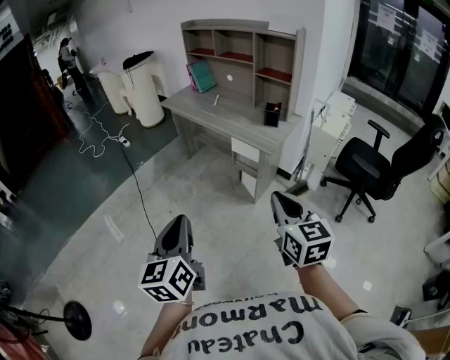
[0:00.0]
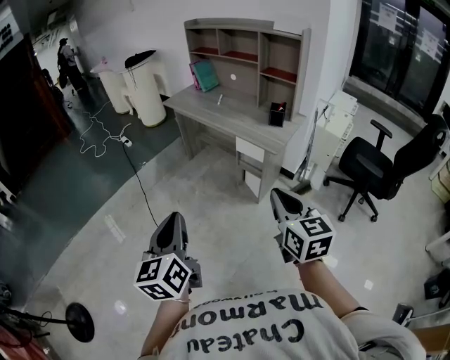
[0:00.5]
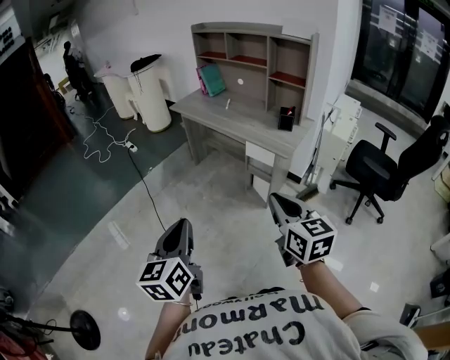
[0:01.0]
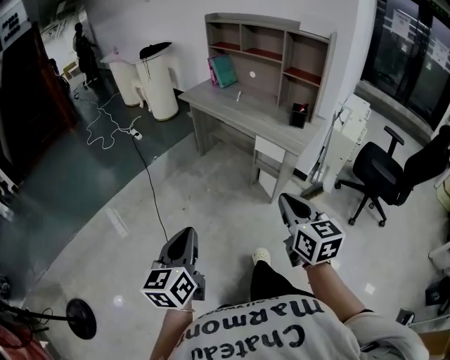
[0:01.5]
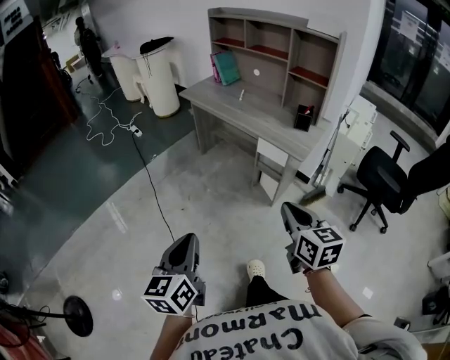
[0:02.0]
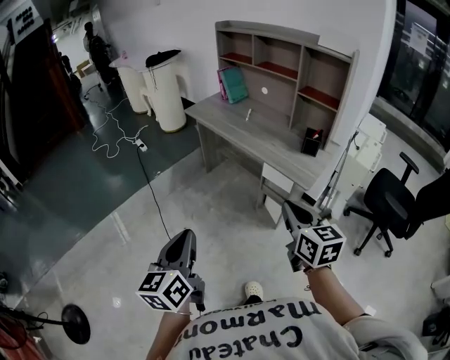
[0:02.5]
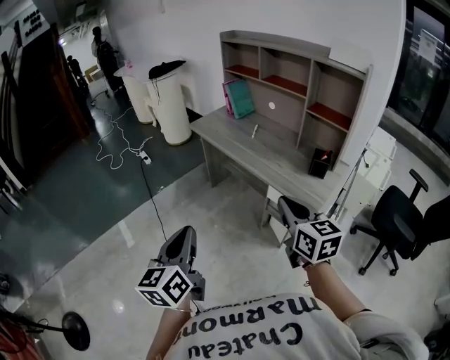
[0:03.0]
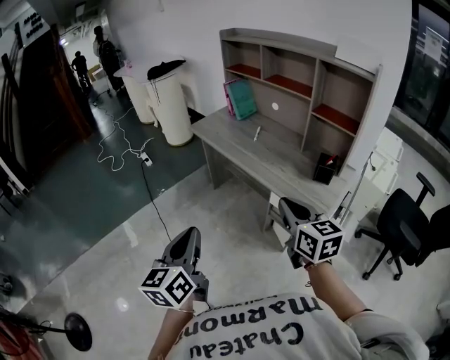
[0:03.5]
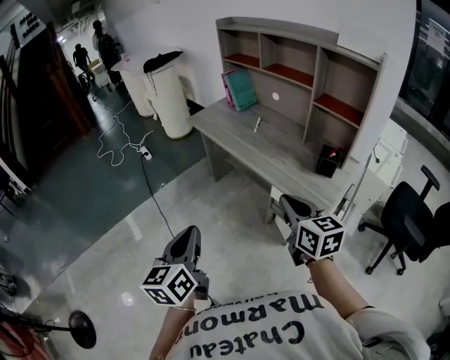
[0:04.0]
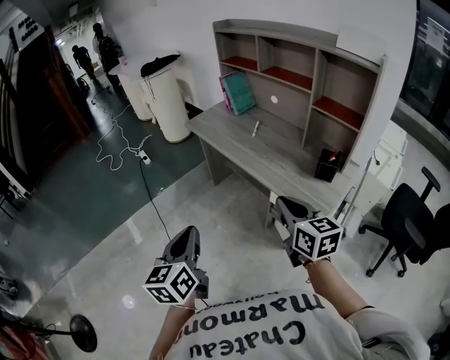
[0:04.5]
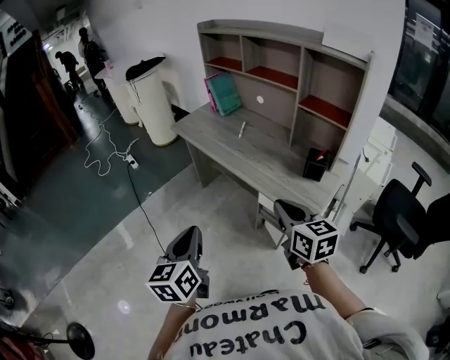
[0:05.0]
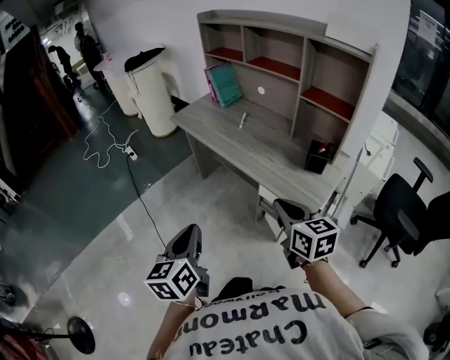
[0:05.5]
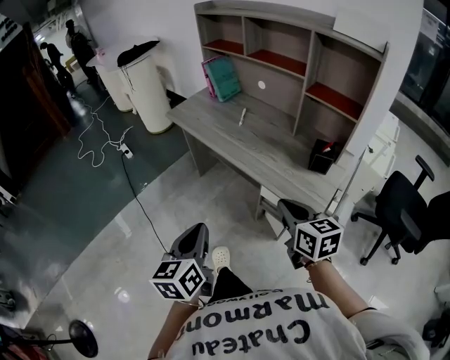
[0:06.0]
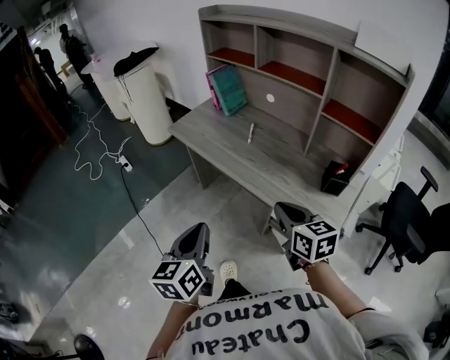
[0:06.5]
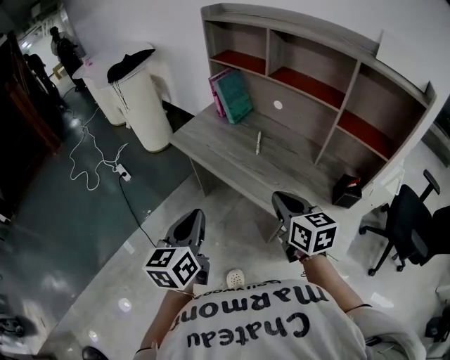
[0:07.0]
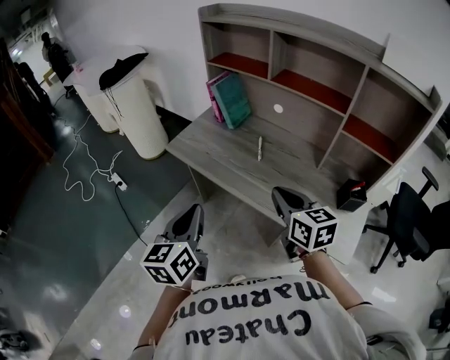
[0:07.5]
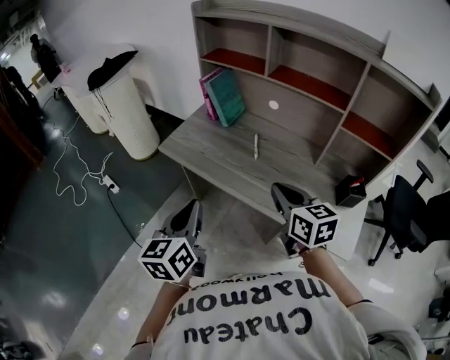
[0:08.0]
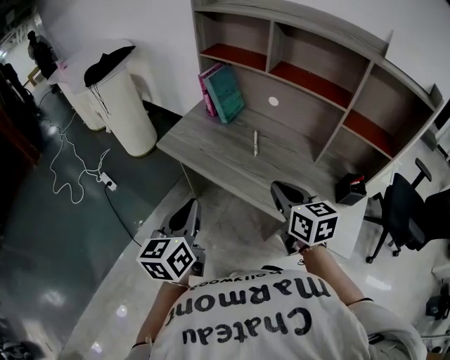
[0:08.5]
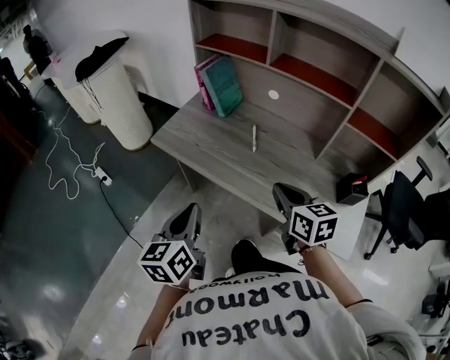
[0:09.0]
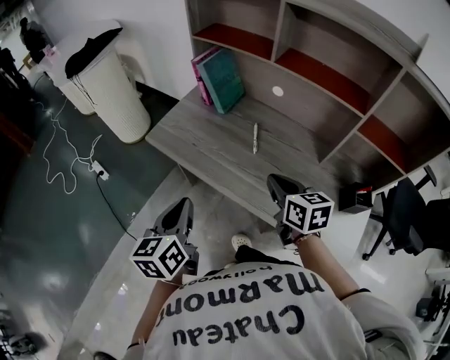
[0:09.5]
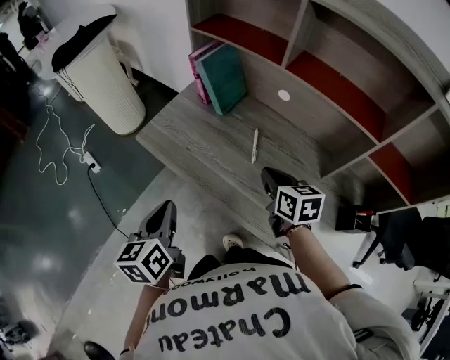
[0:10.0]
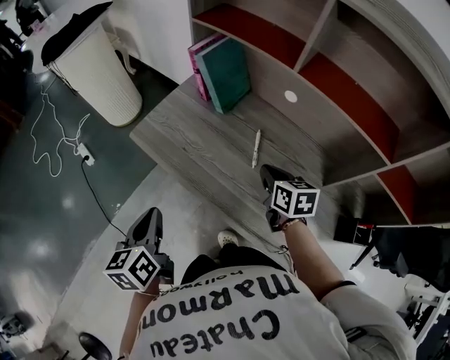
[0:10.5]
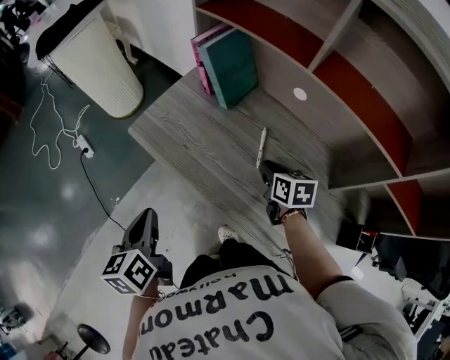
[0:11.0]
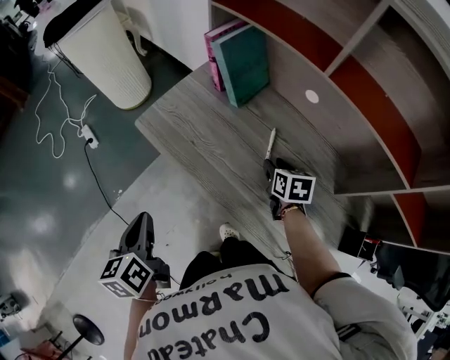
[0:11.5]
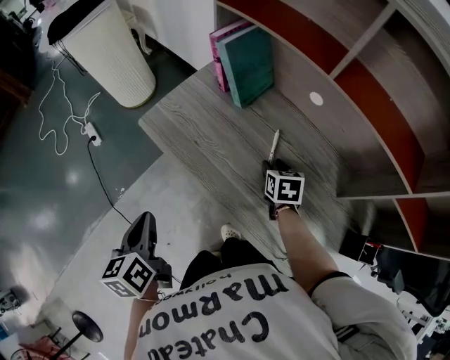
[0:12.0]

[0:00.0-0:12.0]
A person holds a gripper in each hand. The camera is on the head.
0:00.0 to 0:02.0: The left gripper goes approximately 10 cm to the left and downward. Meanwhile the right gripper heads to the left, forward and downward, covering about 15 cm.
0:02.0 to 0:04.0: The two grippers go about 30 cm forward.
0:04.0 to 0:06.0: The left gripper shifts some 10 cm forward, to the right and downward. Meanwhile the right gripper shifts some 5 cm downward.
0:06.0 to 0:08.0: The right gripper goes some 30 cm forward and to the left, while the left gripper is displaced forward by approximately 30 cm.
0:08.0 to 0:10.0: Both grippers move forward and downward, roughly 20 cm.
0:10.0 to 0:12.0: The left gripper goes approximately 5 cm to the left. The right gripper is displaced downward and forward by approximately 15 cm, swivels roughly 20 degrees, and opens its fingers.

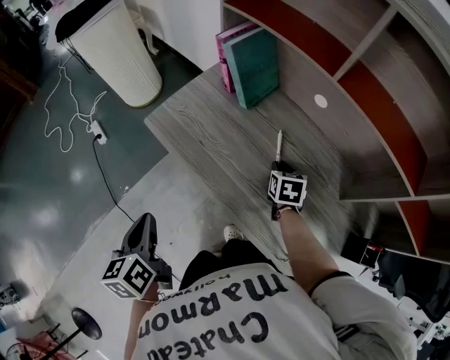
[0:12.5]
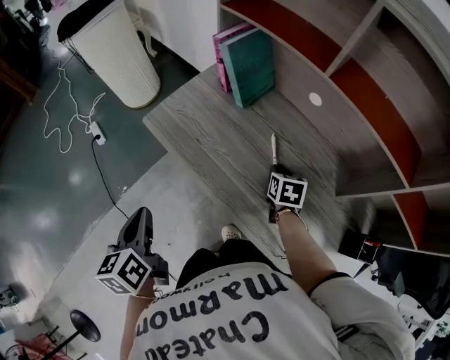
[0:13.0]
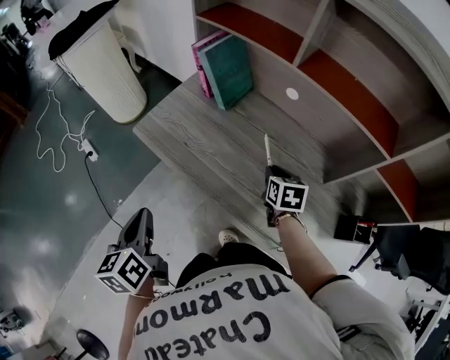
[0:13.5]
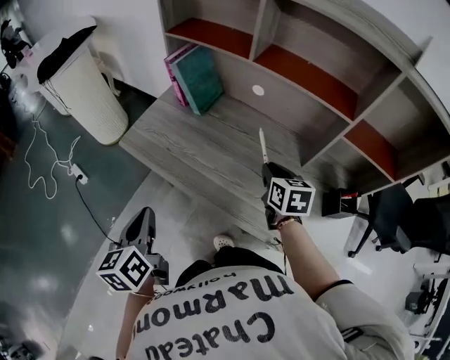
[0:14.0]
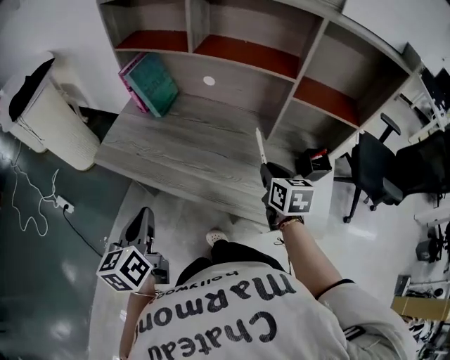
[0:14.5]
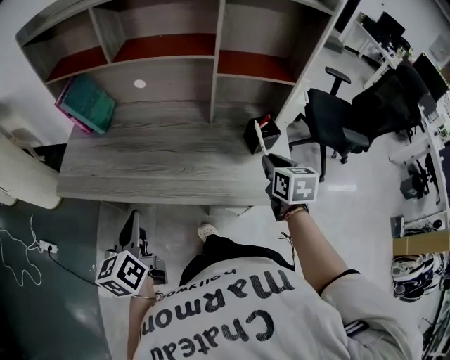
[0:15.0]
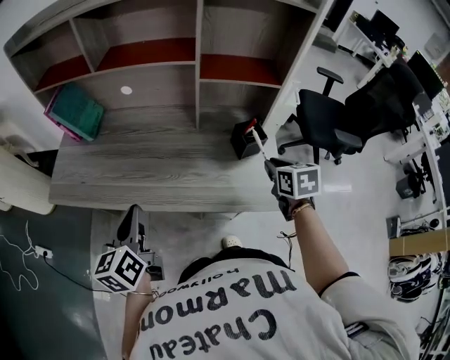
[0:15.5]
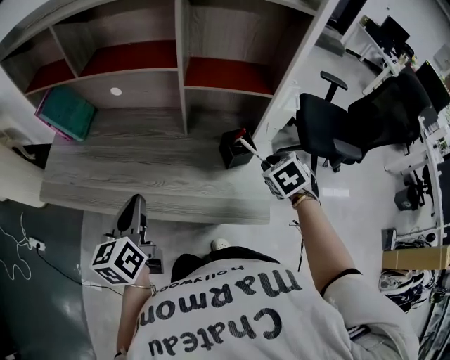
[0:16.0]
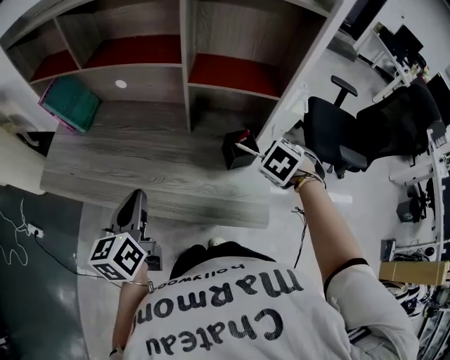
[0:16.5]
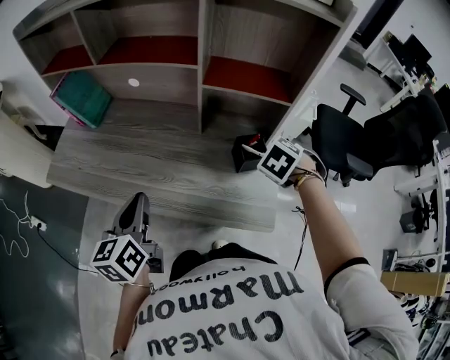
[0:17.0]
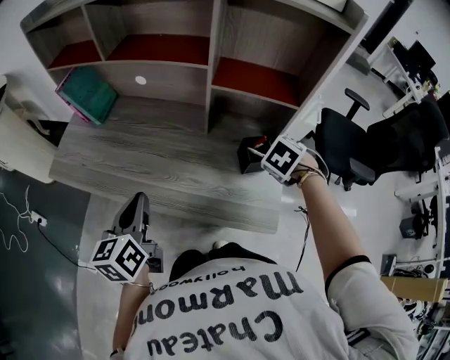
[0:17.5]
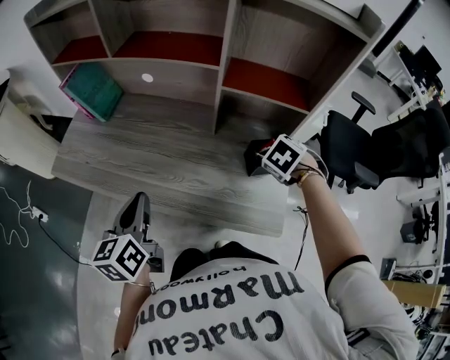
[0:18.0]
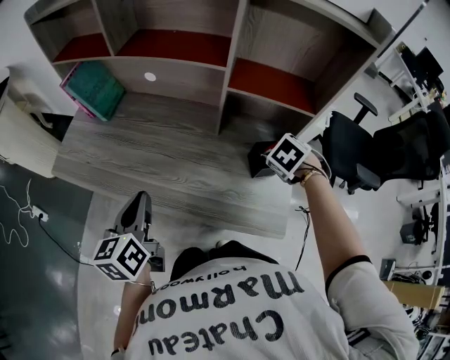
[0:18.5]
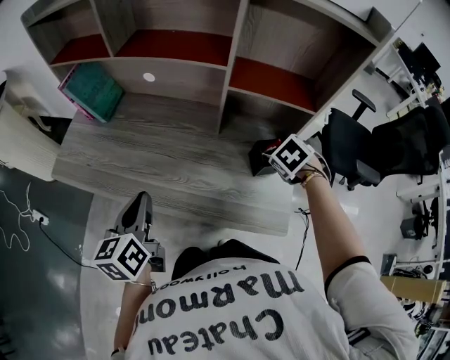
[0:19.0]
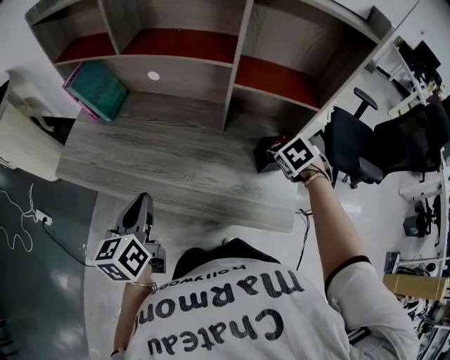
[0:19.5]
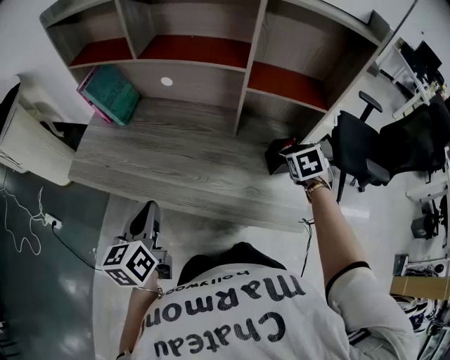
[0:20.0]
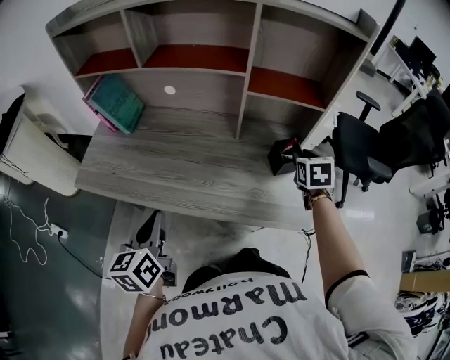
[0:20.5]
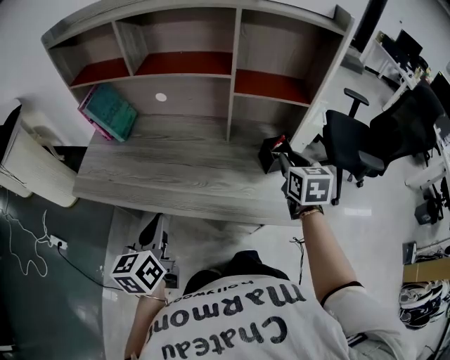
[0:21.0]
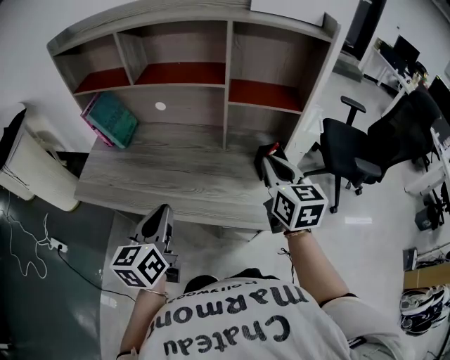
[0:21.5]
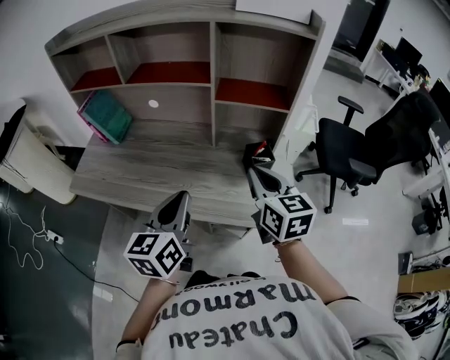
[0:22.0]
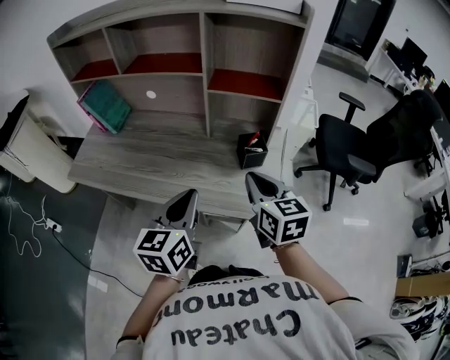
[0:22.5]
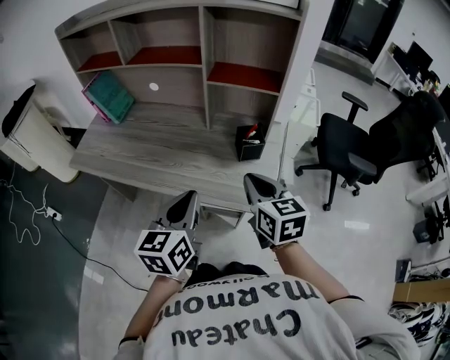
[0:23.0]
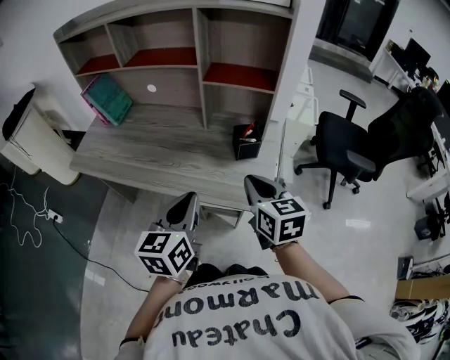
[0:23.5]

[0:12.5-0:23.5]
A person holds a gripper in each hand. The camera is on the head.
0:12.5 to 0:14.5: The left gripper goes approximately 15 cm to the right and upward, and changes its angle by some 30 degrees, while the right gripper heads backward, upward and to the right, covering some 30 cm, and changes its angle by approximately 30 degrees.
0:14.5 to 0:16.0: The right gripper goes roughly 25 cm to the right, and rotates approximately 40 degrees. The left gripper shifts approximately 25 cm to the right and forward.
0:16.0 to 0:18.0: The right gripper moves roughly 5 cm, and rotates some 30 degrees.
0:18.0 to 0:20.0: The left gripper shifts by some 5 cm, while the right gripper swivels roughly 40 degrees.
0:20.0 to 0:21.5: The right gripper travels upward, backward and to the left by about 20 cm, angles its fingers upward, by some 40 degrees, and closes, while the left gripper is displaced to the right by approximately 5 cm.
0:21.5 to 0:23.5: The left gripper shifts some 20 cm to the right and backward; the right gripper heads backward, downward and to the right, covering some 15 cm.

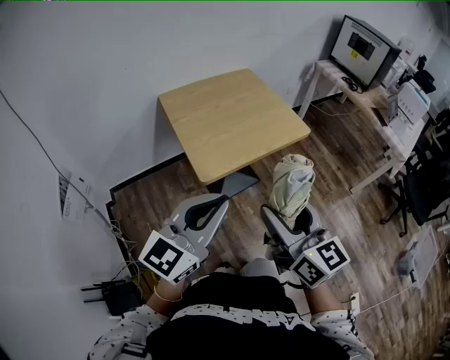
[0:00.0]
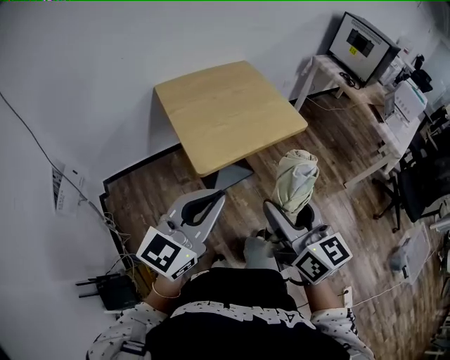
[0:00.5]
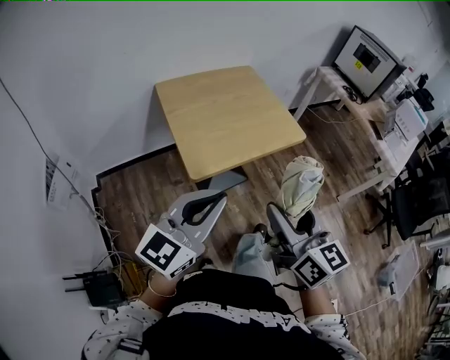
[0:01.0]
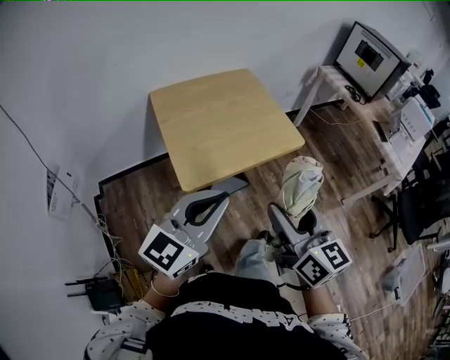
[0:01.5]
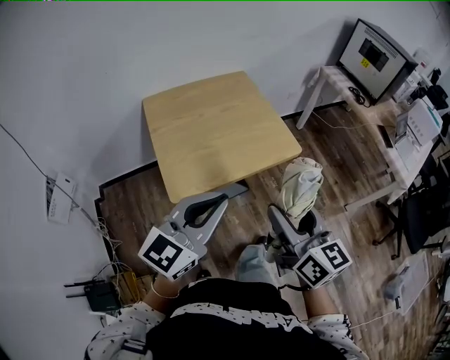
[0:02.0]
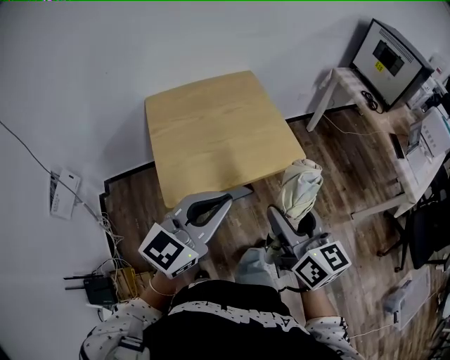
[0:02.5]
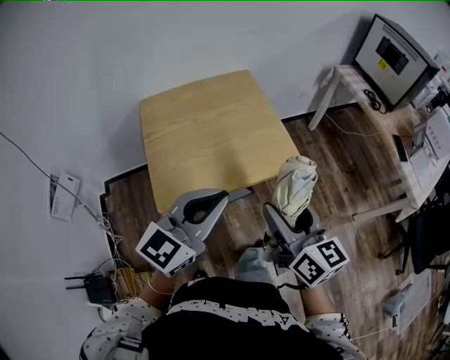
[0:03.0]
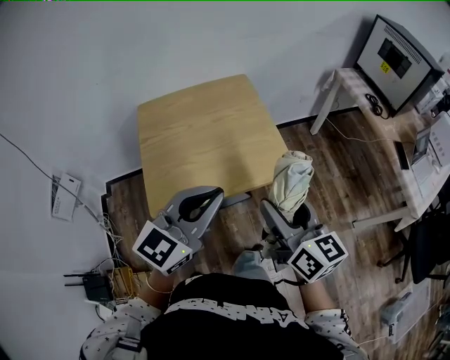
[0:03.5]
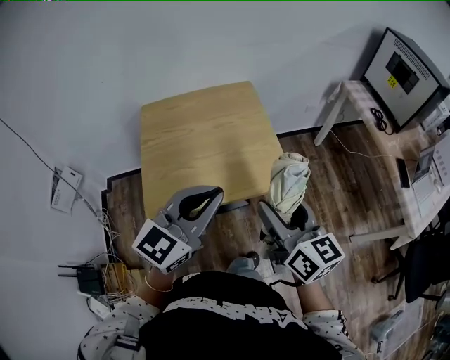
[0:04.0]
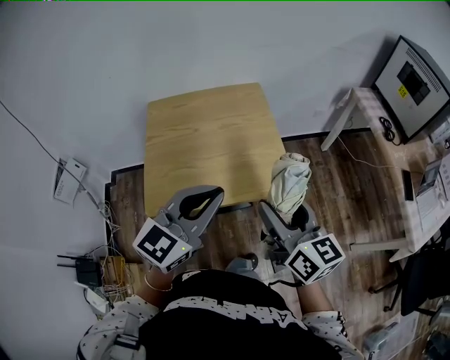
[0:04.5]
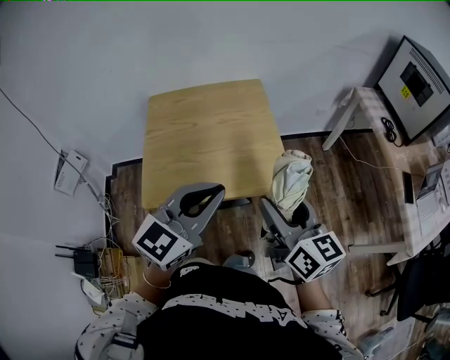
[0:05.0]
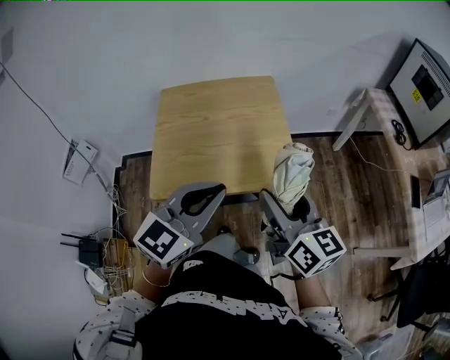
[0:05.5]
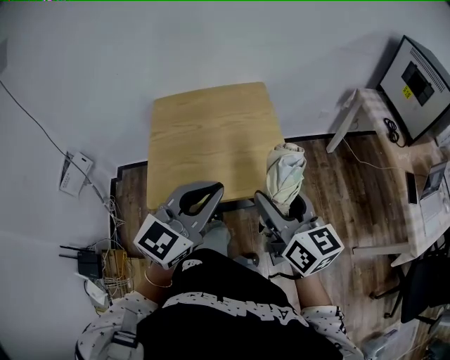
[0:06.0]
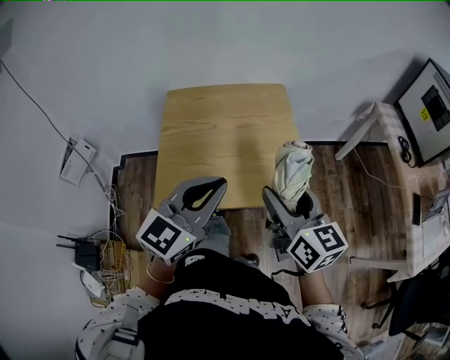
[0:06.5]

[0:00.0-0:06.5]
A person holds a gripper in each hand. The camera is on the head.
0:00.0 to 0:02.0: Both grippers move forward and to the right, about 15 cm.
0:02.0 to 0:04.5: Both grippers move forward and to the right, about 20 cm.
0:04.5 to 0:06.5: The left gripper moves approximately 5 cm. Meanwhile the right gripper goes some 5 cm forward.
